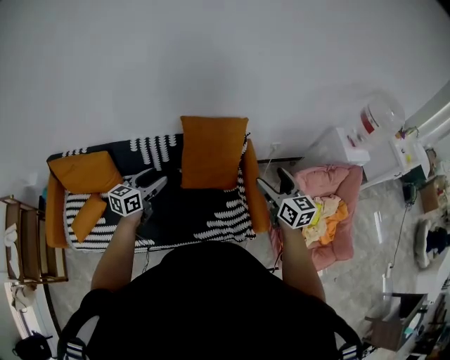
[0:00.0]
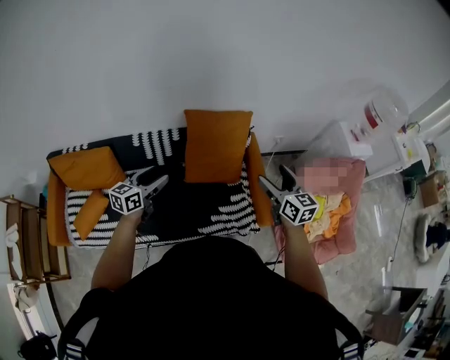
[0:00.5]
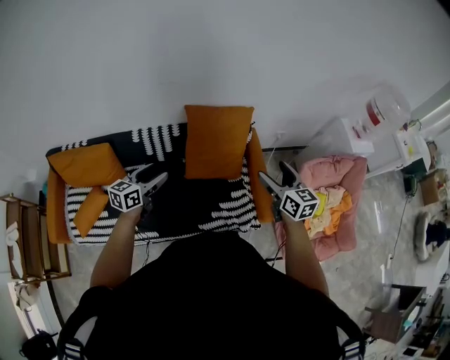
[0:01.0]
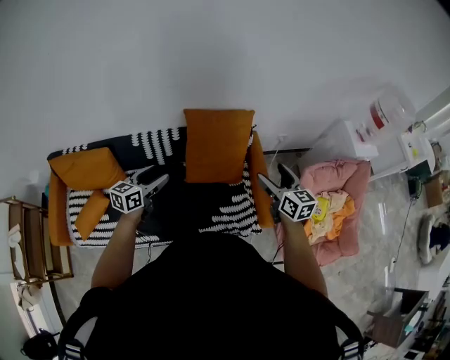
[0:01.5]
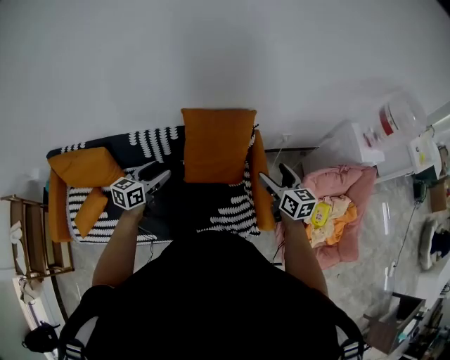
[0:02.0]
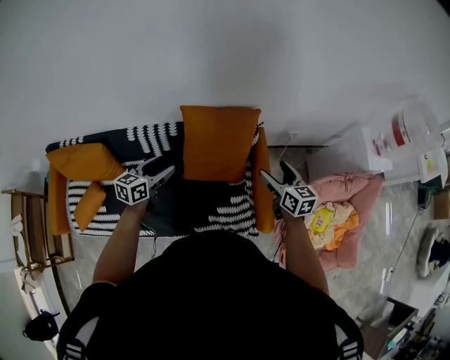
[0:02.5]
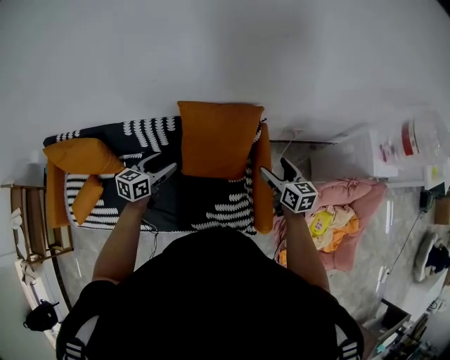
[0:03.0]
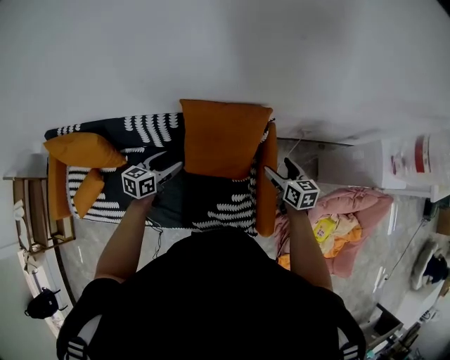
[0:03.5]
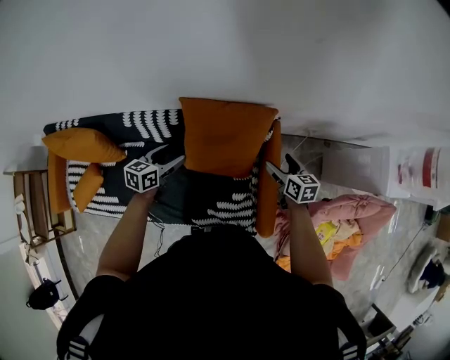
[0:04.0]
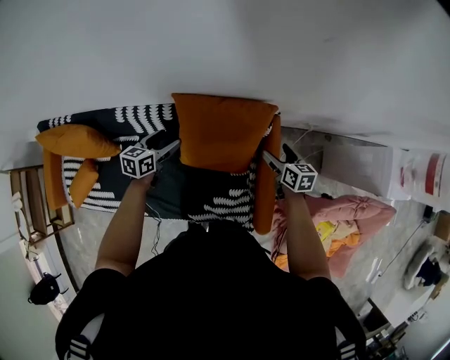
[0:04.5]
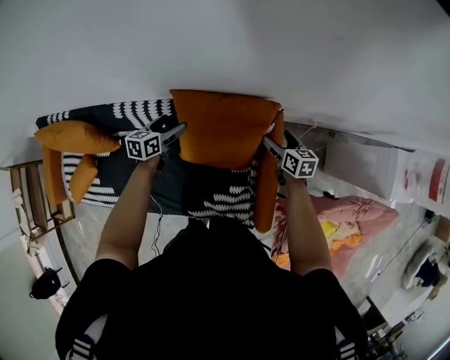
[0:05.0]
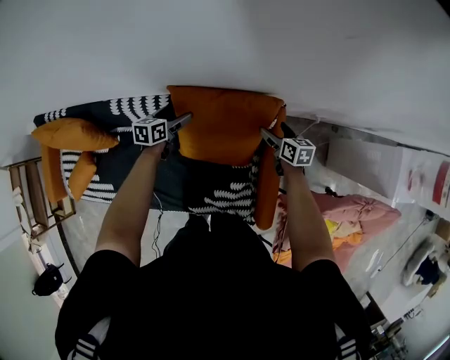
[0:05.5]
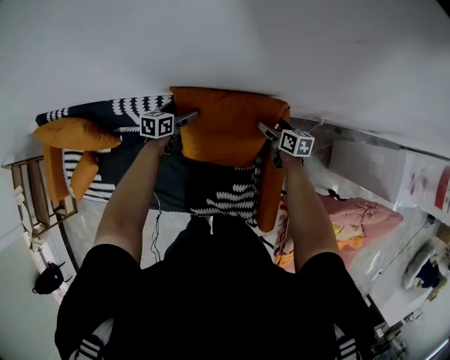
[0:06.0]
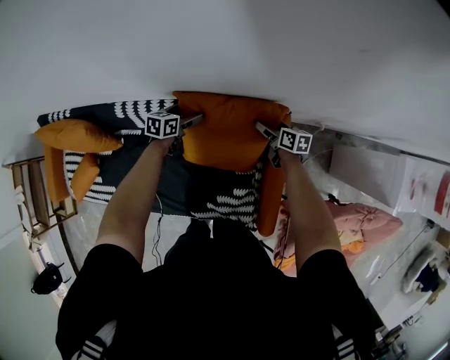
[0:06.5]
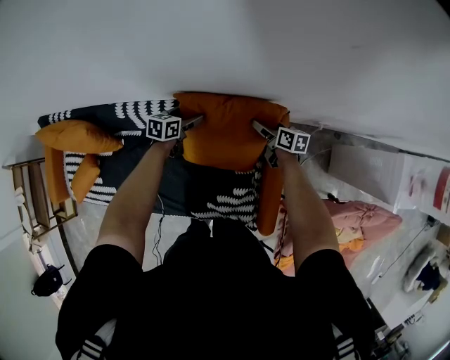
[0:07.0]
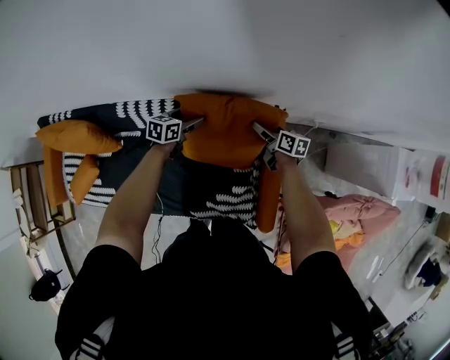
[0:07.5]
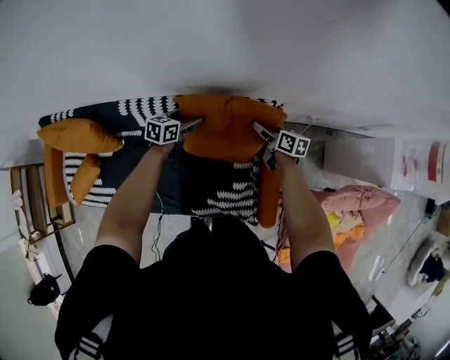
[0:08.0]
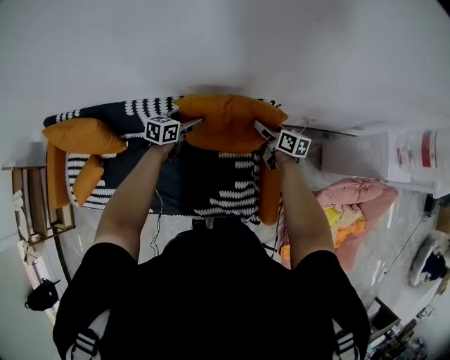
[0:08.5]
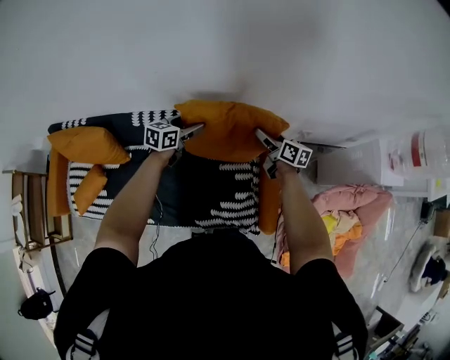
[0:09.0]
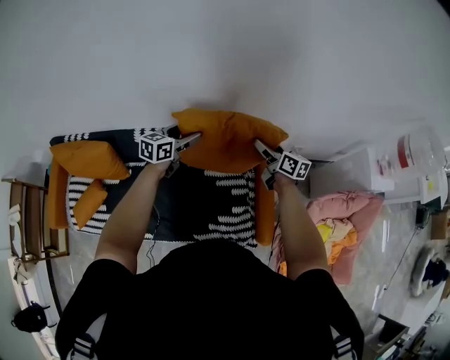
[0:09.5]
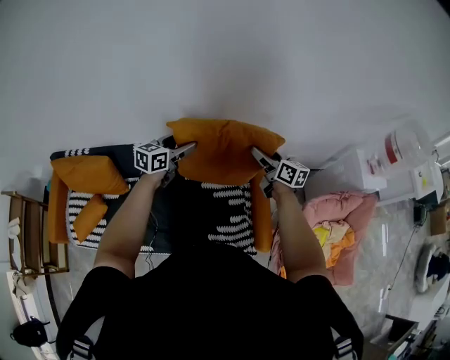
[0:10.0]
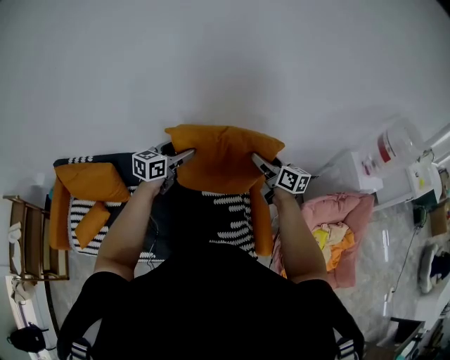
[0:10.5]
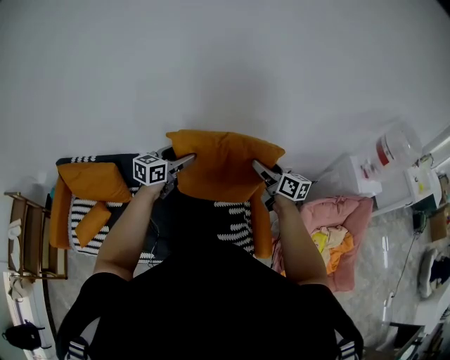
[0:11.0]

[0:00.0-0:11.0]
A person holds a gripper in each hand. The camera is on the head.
0:00.0 to 0:02.0: The right gripper is displaced forward and downward by approximately 10 cm. Meanwhile the left gripper is displaced forward by roughly 5 cm.
0:02.0 to 0:03.5: The two grippers go about 20 cm forward and downward.
0:03.5 to 0:05.5: The right gripper travels downward and forward by some 20 cm. Meanwhile the left gripper shifts approximately 25 cm forward and downward.
0:05.5 to 0:07.5: The right gripper changes place by about 5 cm.
0:07.5 to 0:09.0: Both grippers travel together upward and backward, about 15 cm.
0:09.0 to 0:11.0: The two grippers go roughly 20 cm upward and backward.

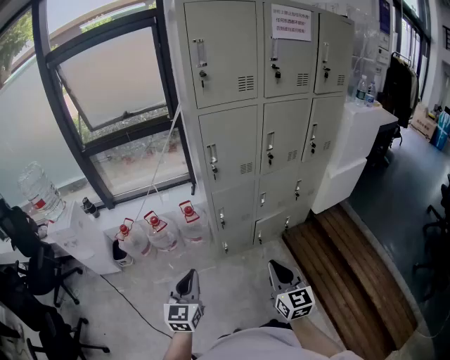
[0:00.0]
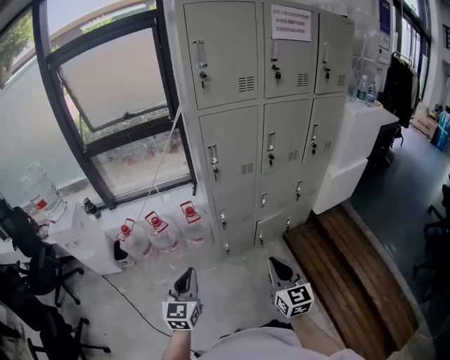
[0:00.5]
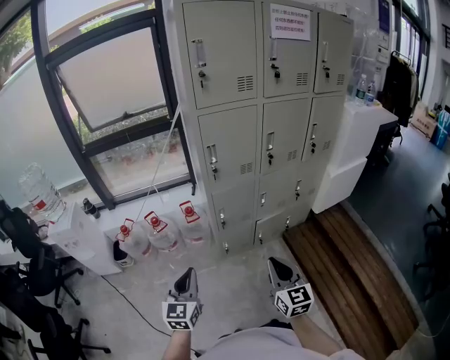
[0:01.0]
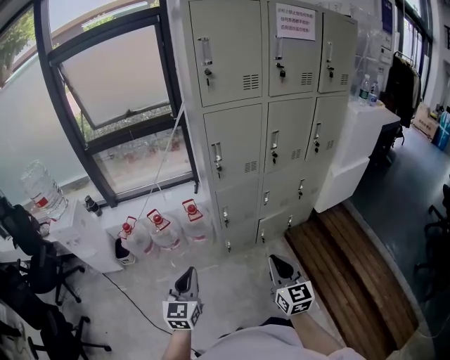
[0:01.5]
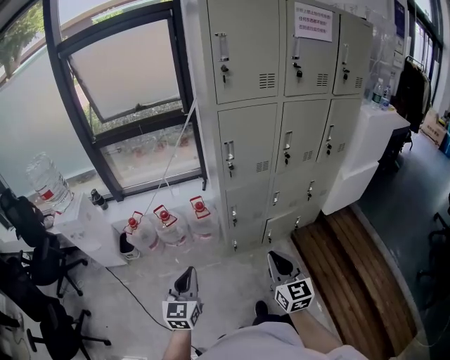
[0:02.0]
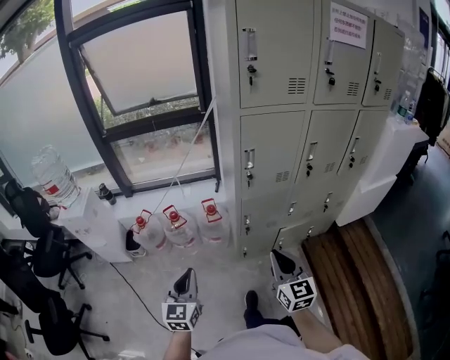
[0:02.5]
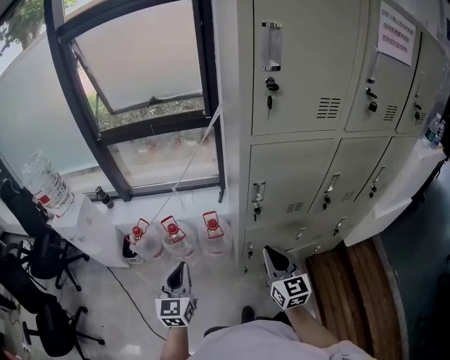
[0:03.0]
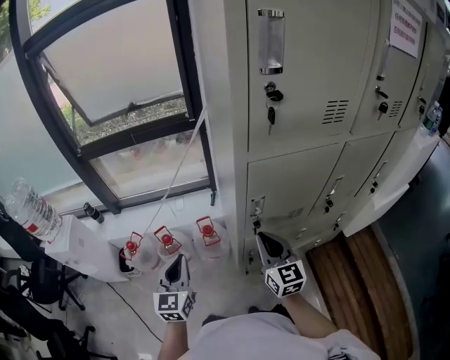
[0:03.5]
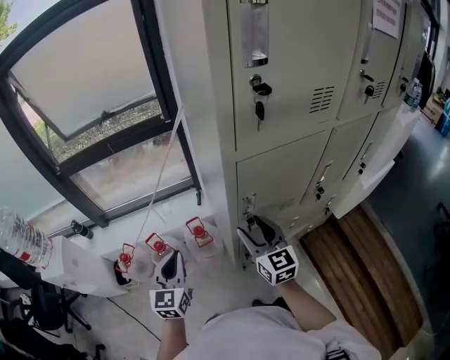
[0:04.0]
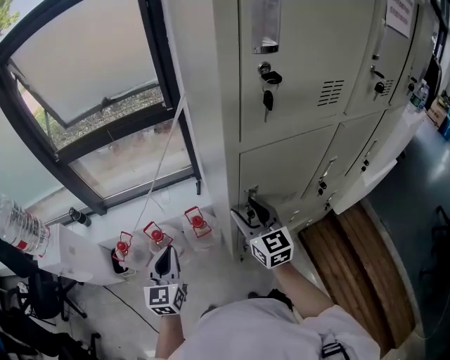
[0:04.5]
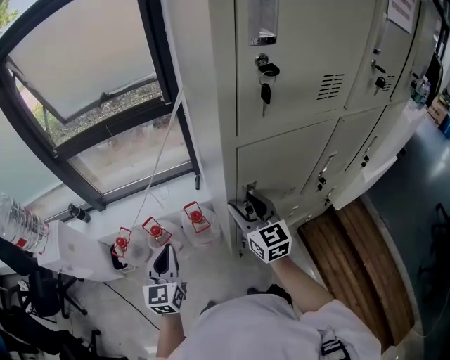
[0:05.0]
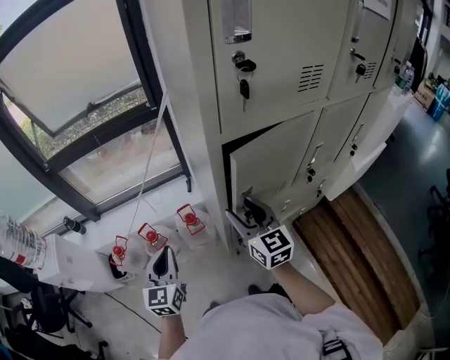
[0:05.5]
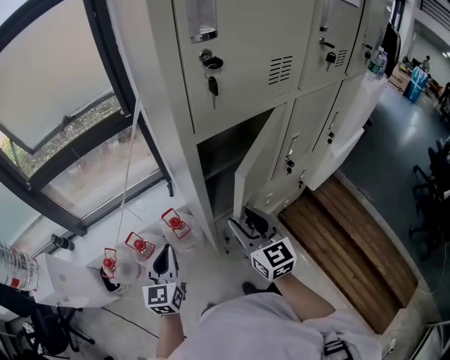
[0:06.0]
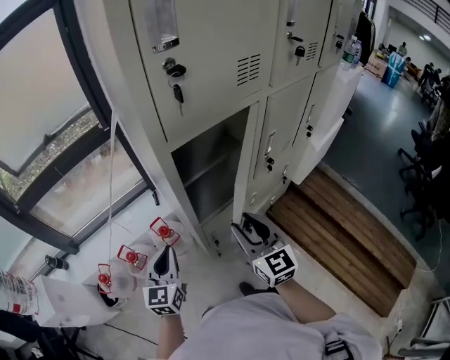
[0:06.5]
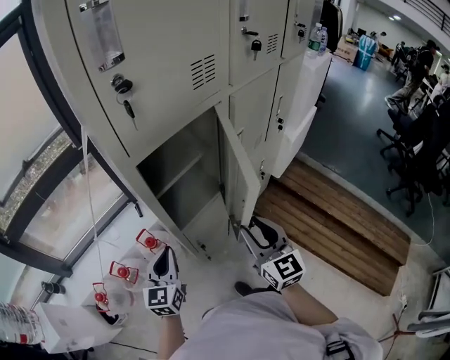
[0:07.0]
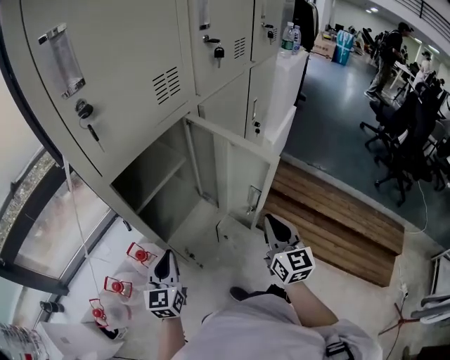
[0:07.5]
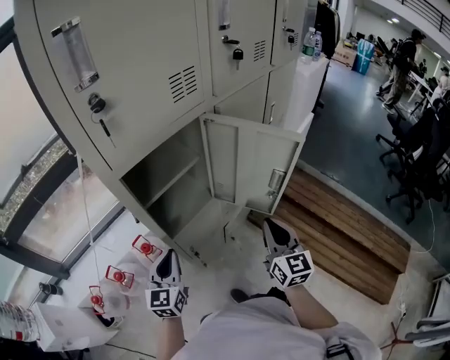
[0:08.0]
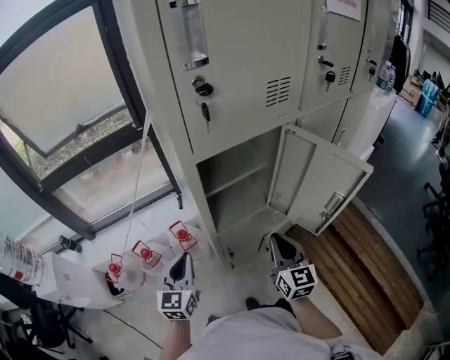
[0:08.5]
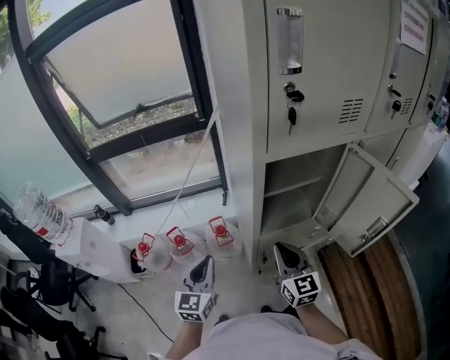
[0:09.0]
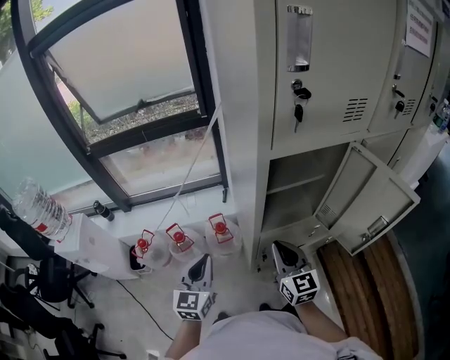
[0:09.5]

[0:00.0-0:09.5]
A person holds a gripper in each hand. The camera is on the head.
0:00.0 to 0:02.0: The left gripper travels to the left by roughly 5 cm, while the right gripper changes place by about 5 cm.
0:02.0 to 0:04.0: The pair of grippers is taken forward, some 40 cm. The right gripper opens its fingers.
0:04.0 to 0:05.5: There are only small adjustments of the grippers.
0:05.5 to 0:07.5: The right gripper changes place by roughly 30 cm, changes its angle by approximately 40 degrees, and closes, while the left gripper shifts by approximately 20 cm, and changes its angle by roughly 30 degrees.
0:07.5 to 0:09.5: The left gripper changes place by roughly 20 cm, and changes its angle by some 30 degrees; the right gripper changes place by approximately 30 cm, and rotates approximately 50 degrees.

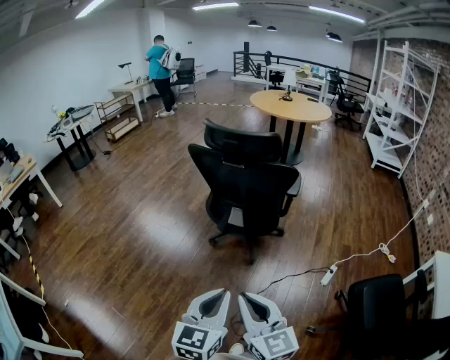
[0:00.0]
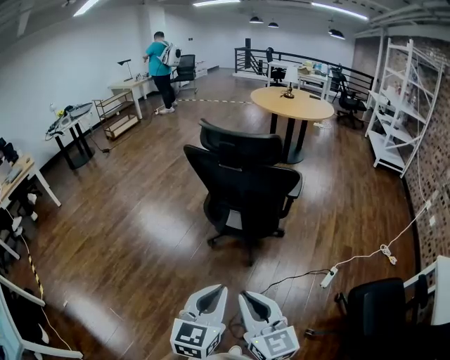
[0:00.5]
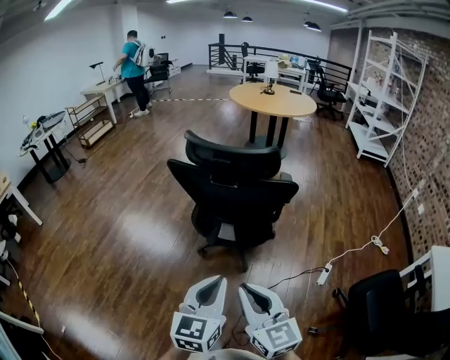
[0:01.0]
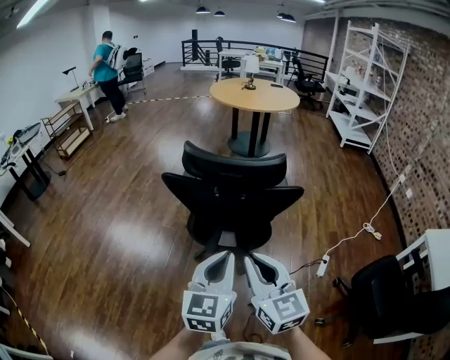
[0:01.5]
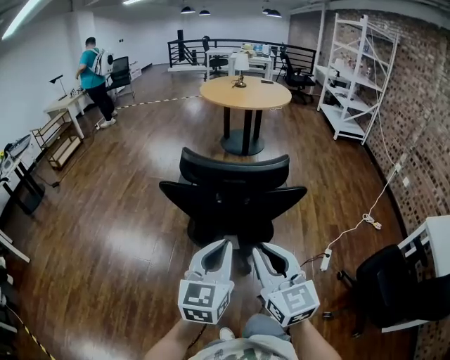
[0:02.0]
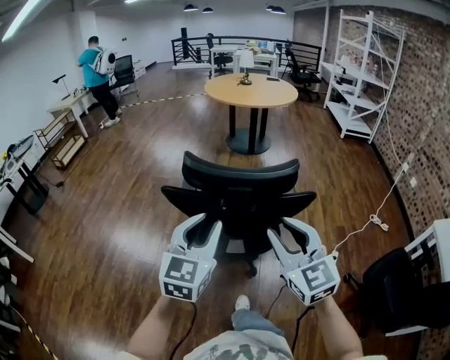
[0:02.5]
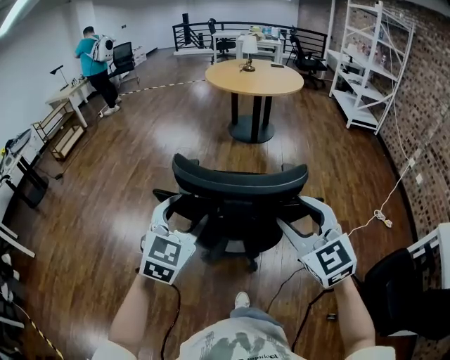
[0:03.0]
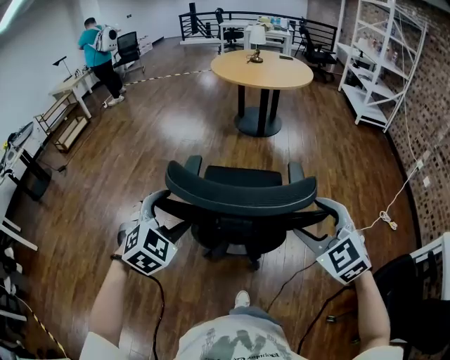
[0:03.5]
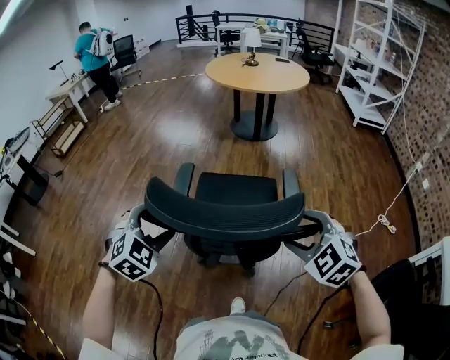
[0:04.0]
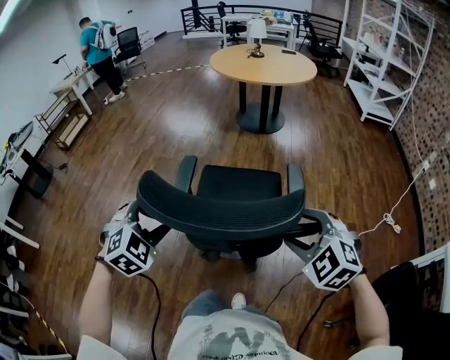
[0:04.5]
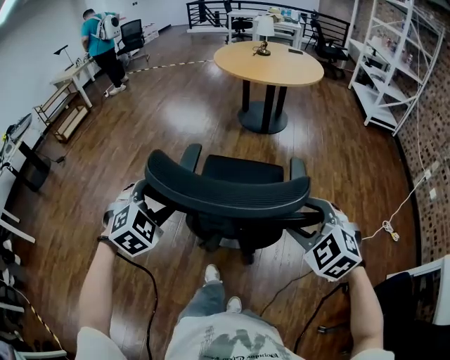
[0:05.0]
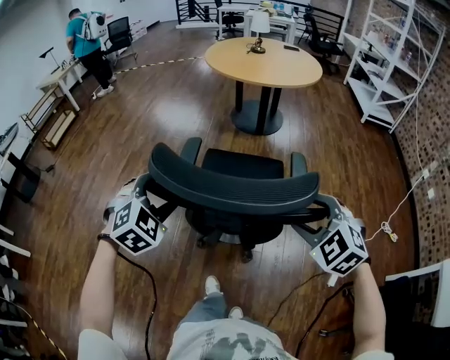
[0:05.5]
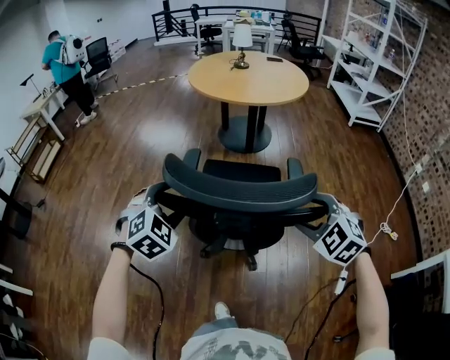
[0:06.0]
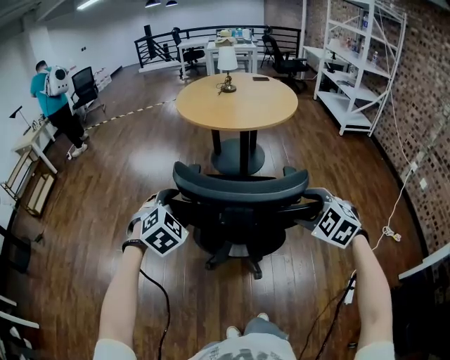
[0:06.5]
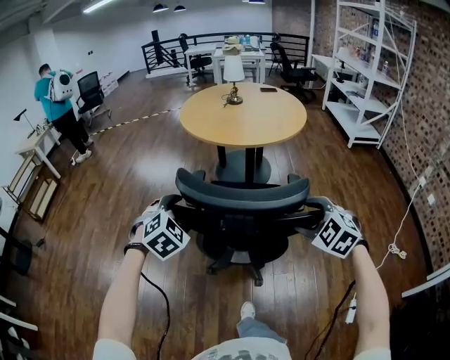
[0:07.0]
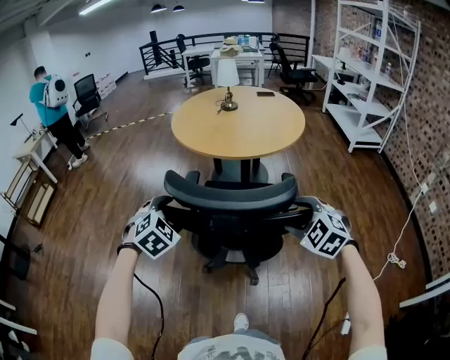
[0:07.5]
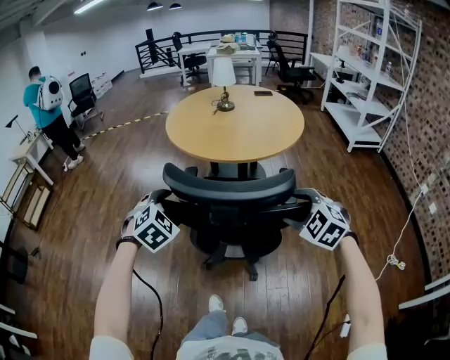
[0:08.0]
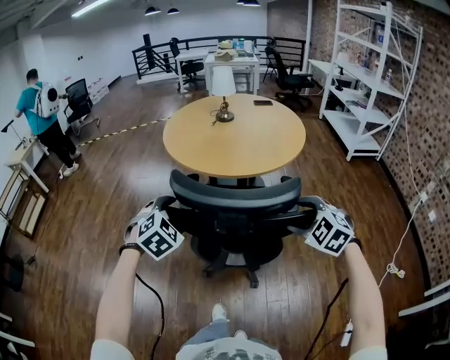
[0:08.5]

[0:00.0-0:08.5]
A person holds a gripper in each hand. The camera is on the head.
0:00.0 to 0:02.0: The grippers both shift forward by about 30 cm. The right gripper rotates some 20 degrees.
0:02.0 to 0:04.0: The left gripper goes approximately 25 cm forward and to the left, rolls clockwise, seen from behind, by roughly 50 degrees, and opens its fingers. The right gripper is displaced forward and to the right by approximately 25 cm, points its fingers approximately 40 degrees further downward, and opens.
0:04.0 to 0:06.5: The two grippers travel together, forward, roughly 40 cm.
0:06.5 to 0:08.5: The two grippers go roughly 30 cm forward.
